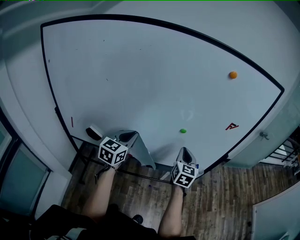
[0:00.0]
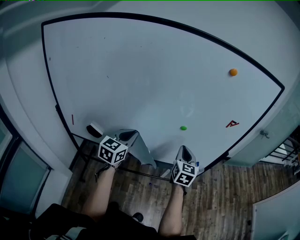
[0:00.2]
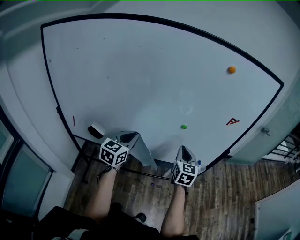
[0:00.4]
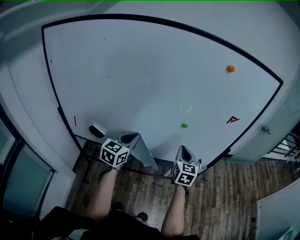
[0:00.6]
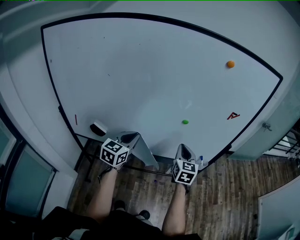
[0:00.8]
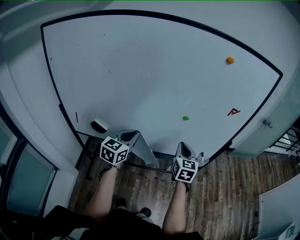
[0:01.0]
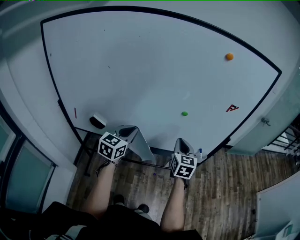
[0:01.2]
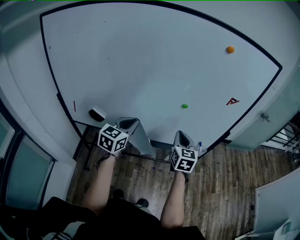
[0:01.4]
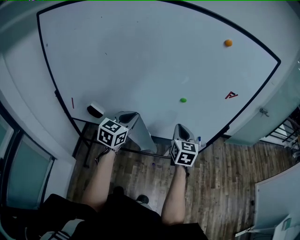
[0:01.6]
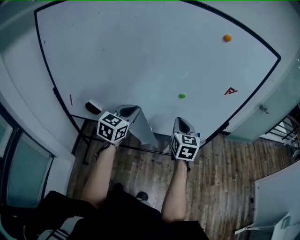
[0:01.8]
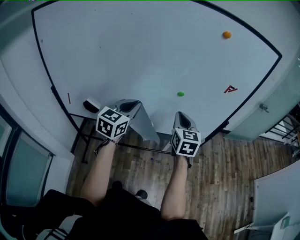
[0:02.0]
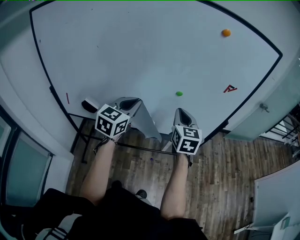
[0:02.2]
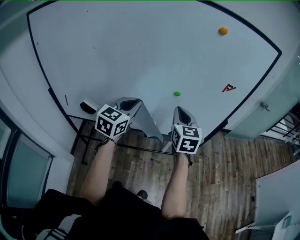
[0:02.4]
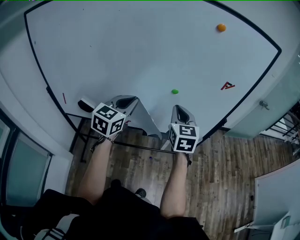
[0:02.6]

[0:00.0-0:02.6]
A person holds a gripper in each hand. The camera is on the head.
0:00.0 to 0:01.2: The grippers both shift backward by roughly 5 cm.
0:01.2 to 0:02.6: The left gripper travels upward and to the right by about 5 cm, while the right gripper travels upward by approximately 5 cm.

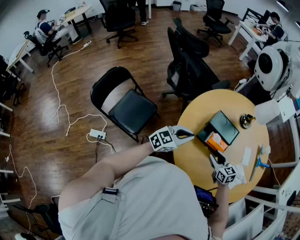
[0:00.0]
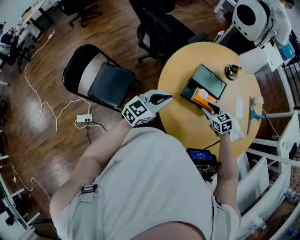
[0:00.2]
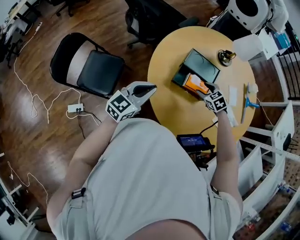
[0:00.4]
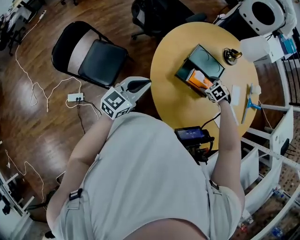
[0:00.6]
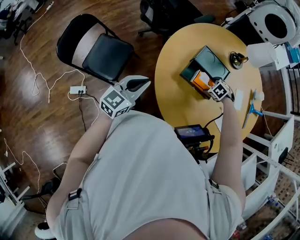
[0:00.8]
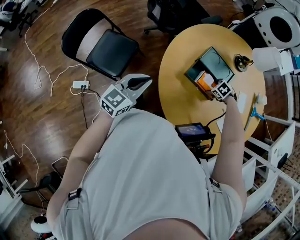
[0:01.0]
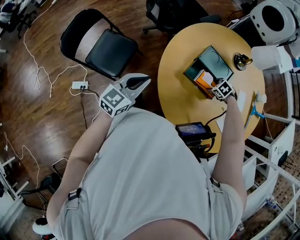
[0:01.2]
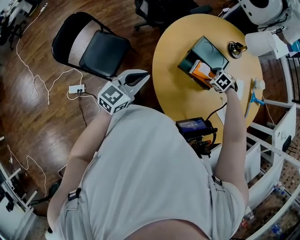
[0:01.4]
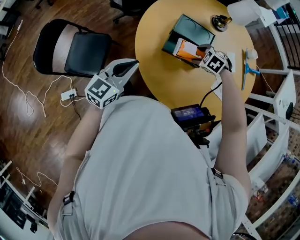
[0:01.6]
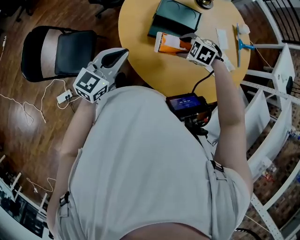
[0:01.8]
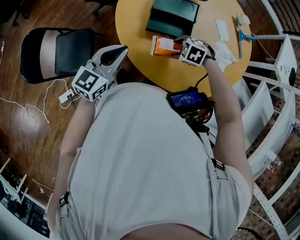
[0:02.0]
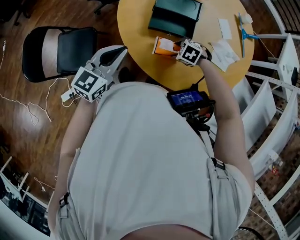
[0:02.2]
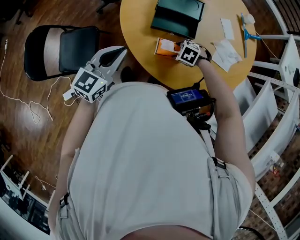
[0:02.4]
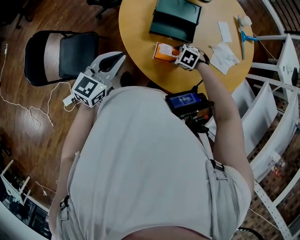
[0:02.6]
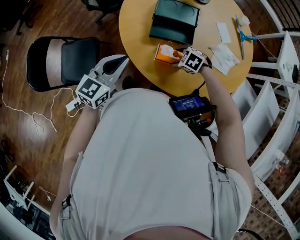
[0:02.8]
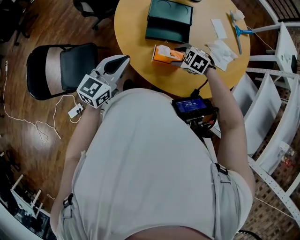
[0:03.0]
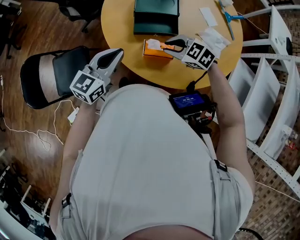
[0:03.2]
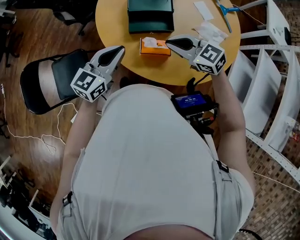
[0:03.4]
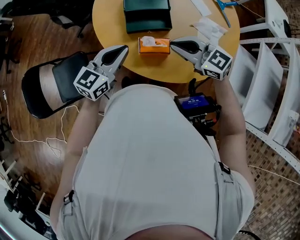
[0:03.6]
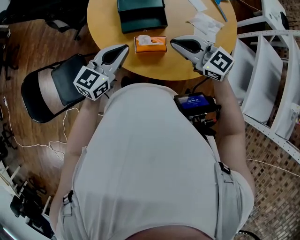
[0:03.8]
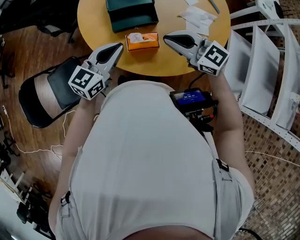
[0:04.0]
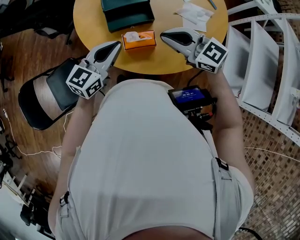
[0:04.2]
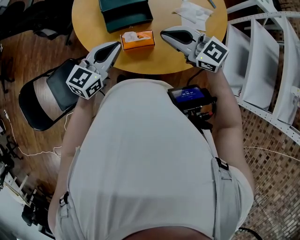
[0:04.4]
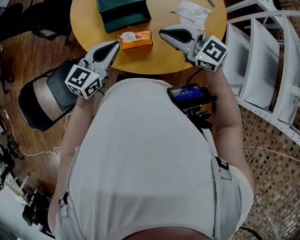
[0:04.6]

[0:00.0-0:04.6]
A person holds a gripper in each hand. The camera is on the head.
0:00.0 to 0:01.6: The right gripper travels downward and back again, some 15 cm each way, and points its fingers approximately 30 degrees further downward, while the left gripper ends up approximately 15 cm from where it was.
0:01.6 to 0:03.0: The left gripper ends up roughly 5 cm from where it was. The right gripper changes place by some 10 cm, and changes its angle by some 20 degrees.
0:03.0 to 0:04.6: The left gripper travels to the right by about 10 cm. The right gripper heads upward, covering approximately 20 cm, angles its fingers upward, by approximately 50 degrees, and closes.

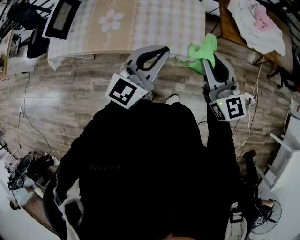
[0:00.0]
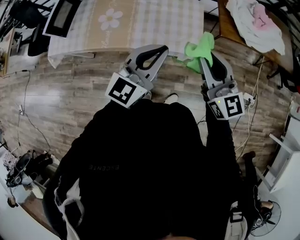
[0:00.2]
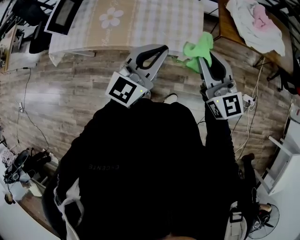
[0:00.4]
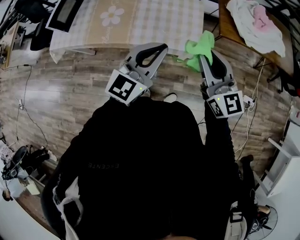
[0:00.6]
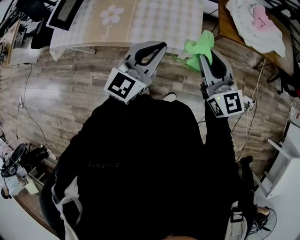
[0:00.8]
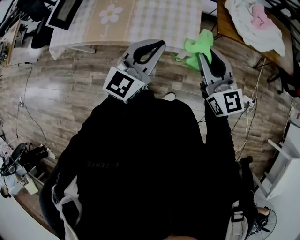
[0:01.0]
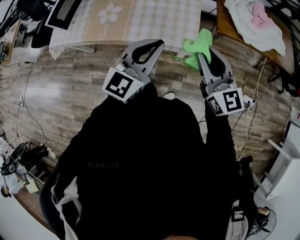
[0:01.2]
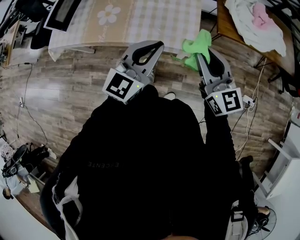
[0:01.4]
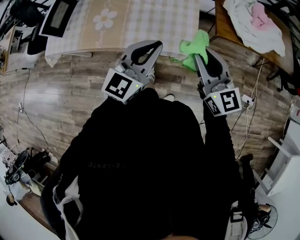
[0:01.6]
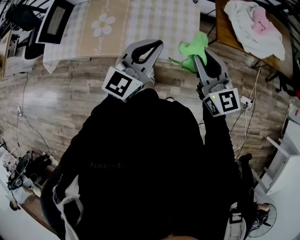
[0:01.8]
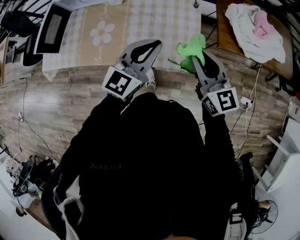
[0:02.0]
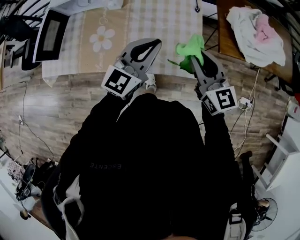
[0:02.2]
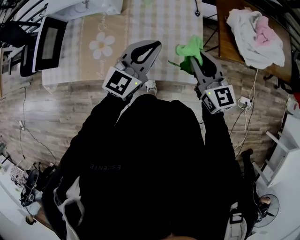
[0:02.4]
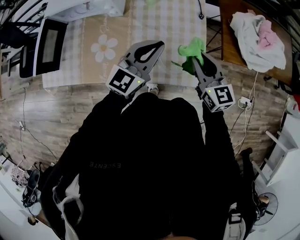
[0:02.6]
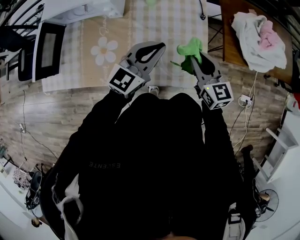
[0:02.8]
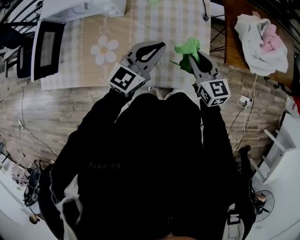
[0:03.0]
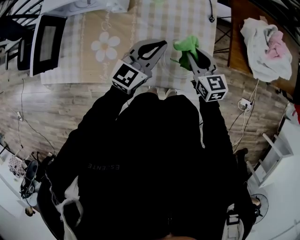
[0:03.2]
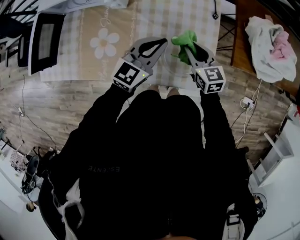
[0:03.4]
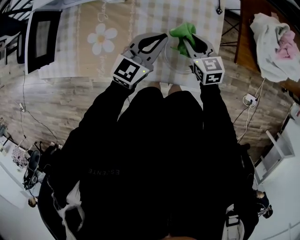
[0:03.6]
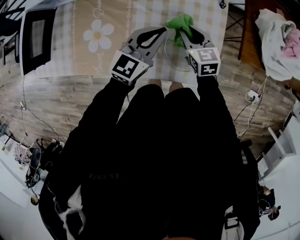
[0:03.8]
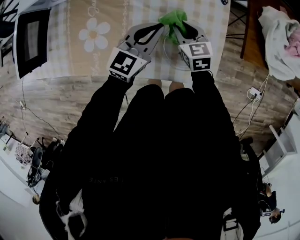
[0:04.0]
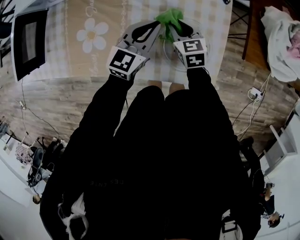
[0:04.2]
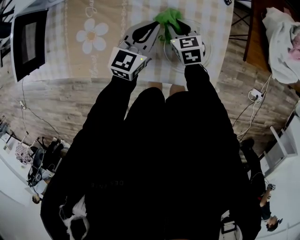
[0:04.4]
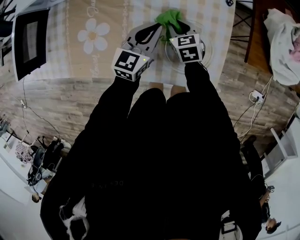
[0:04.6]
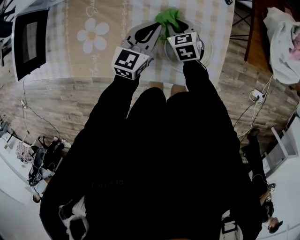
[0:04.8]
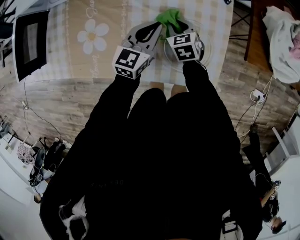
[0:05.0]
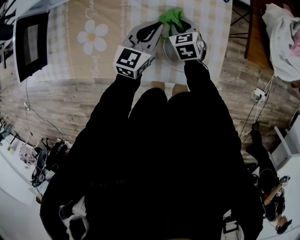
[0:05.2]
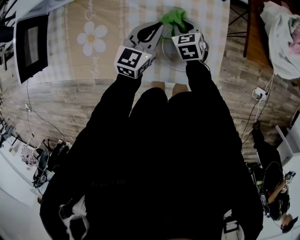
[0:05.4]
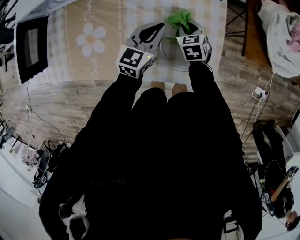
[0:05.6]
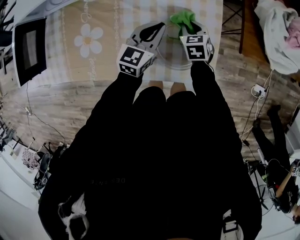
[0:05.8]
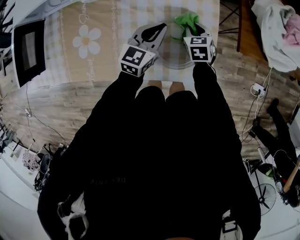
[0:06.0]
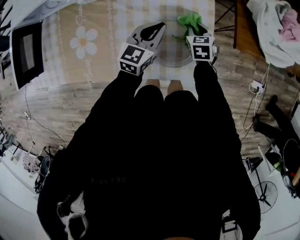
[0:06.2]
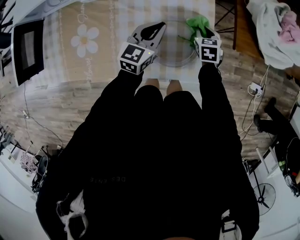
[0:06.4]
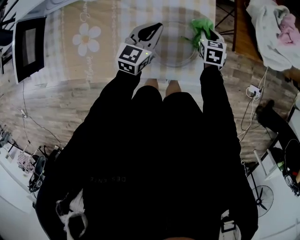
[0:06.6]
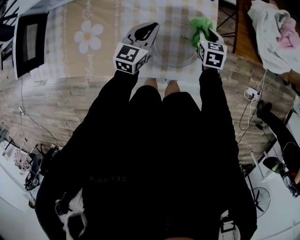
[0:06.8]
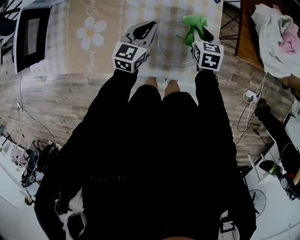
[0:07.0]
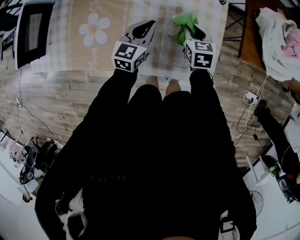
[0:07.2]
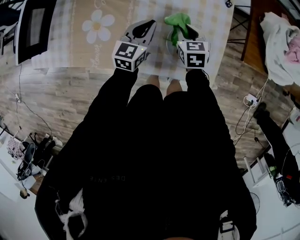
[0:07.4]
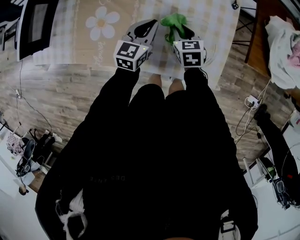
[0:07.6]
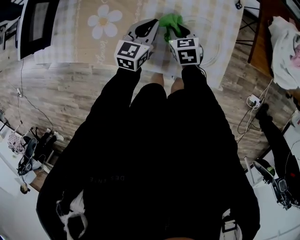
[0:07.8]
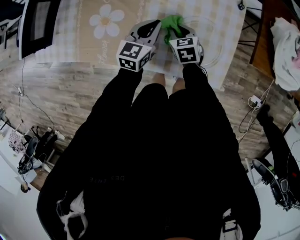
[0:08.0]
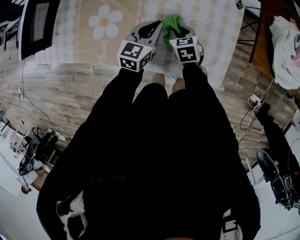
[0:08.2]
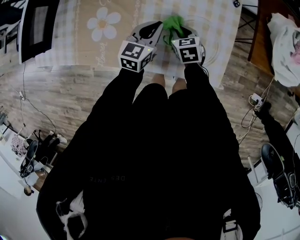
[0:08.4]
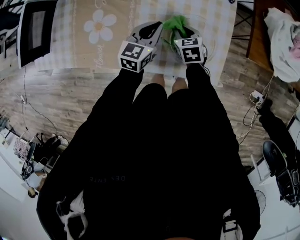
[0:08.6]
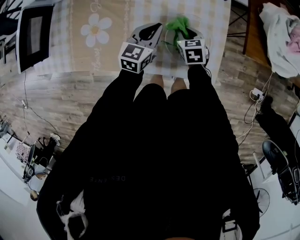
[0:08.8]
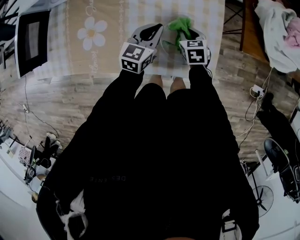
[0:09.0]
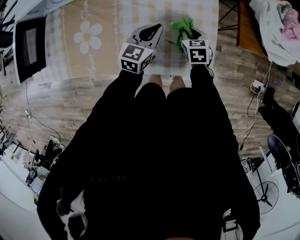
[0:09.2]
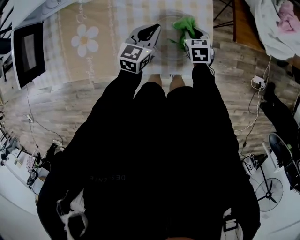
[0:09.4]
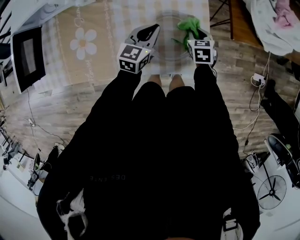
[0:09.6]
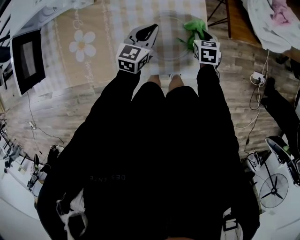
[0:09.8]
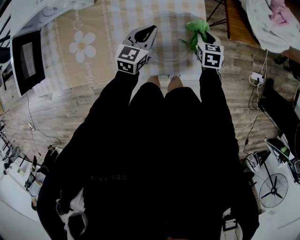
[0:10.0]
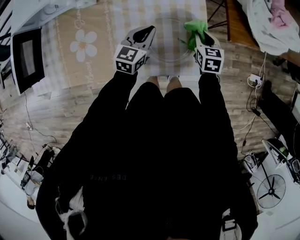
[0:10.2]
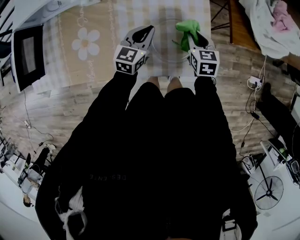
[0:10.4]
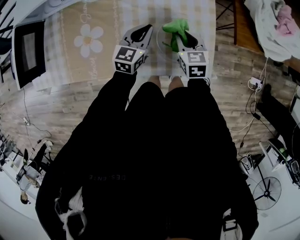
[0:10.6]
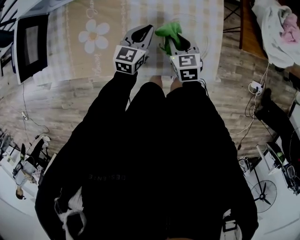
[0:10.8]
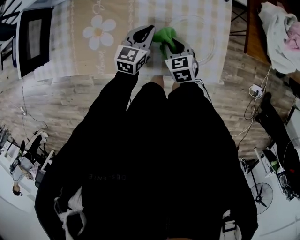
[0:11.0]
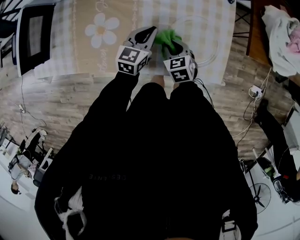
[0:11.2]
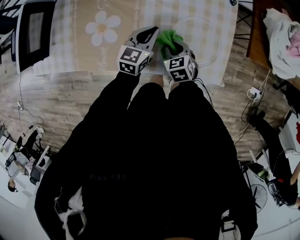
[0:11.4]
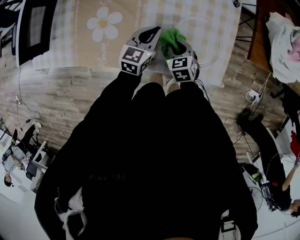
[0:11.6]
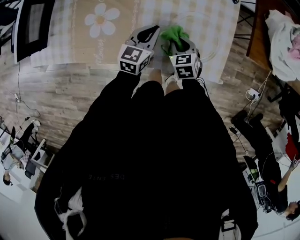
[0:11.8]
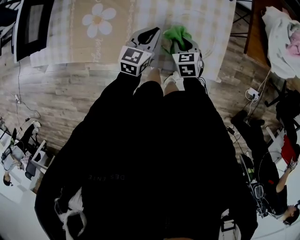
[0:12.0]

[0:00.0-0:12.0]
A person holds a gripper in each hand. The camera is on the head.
0:00.0 to 0:01.6: The left gripper shifts by roughly 5 cm, while the right gripper ends up about 5 cm from where it was.
0:01.6 to 0:03.0: The left gripper goes approximately 30 cm forward and to the left. The right gripper moves forward, downward and to the left, about 30 cm, and changes its angle by about 20 degrees.
0:03.0 to 0:04.4: The grippers both shift downward by about 20 cm. The right gripper swivels approximately 20 degrees.
0:04.4 to 0:06.0: The left gripper moves to the right, some 5 cm. The right gripper shifts about 15 cm to the right.
0:06.0 to 0:07.6: Both grippers travel together to the left, approximately 10 cm.
0:07.6 to 0:09.0: The grippers both shift to the right by about 10 cm.
0:09.0 to 0:10.4: The right gripper travels to the right and upward by approximately 10 cm.
0:10.4 to 0:12.0: The left gripper goes about 10 cm to the left and backward. The right gripper heads to the left, downward and backward, covering some 15 cm.

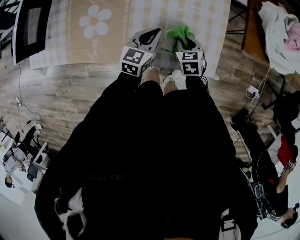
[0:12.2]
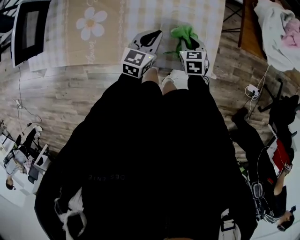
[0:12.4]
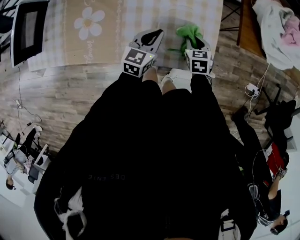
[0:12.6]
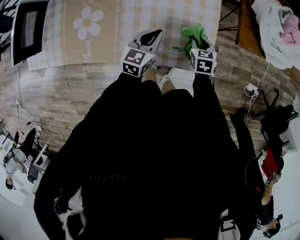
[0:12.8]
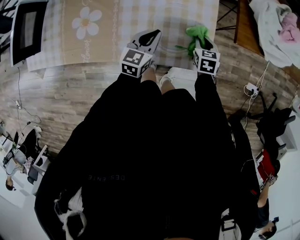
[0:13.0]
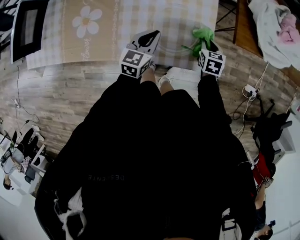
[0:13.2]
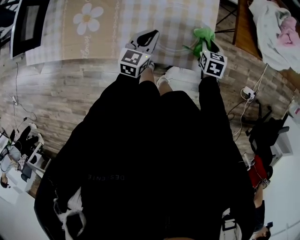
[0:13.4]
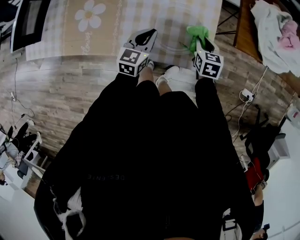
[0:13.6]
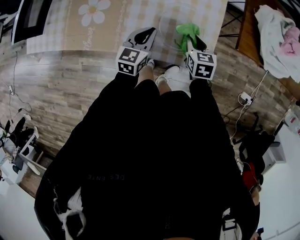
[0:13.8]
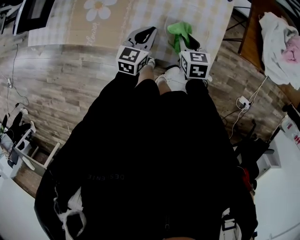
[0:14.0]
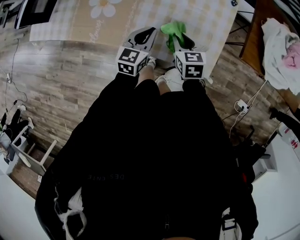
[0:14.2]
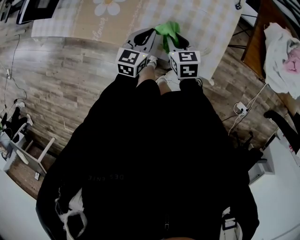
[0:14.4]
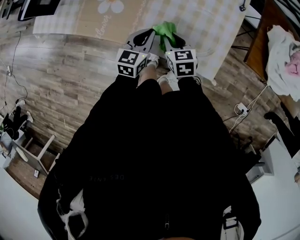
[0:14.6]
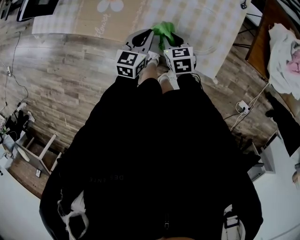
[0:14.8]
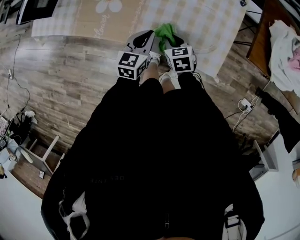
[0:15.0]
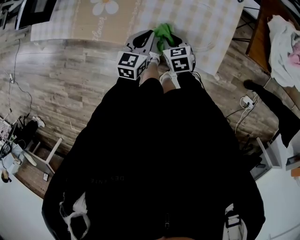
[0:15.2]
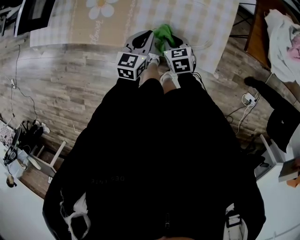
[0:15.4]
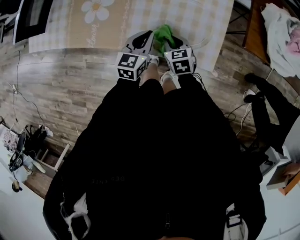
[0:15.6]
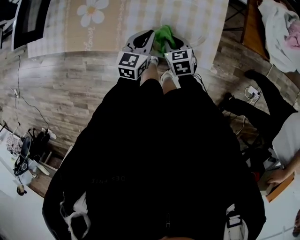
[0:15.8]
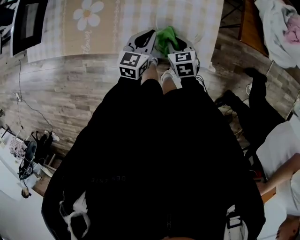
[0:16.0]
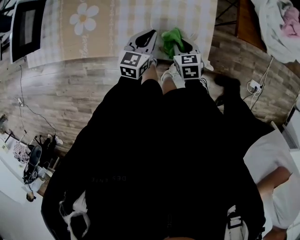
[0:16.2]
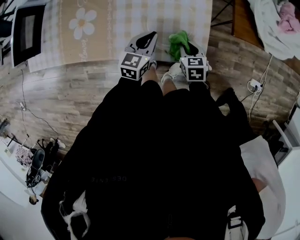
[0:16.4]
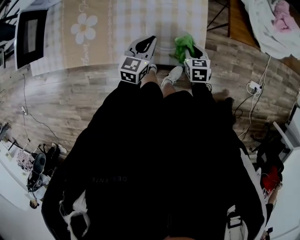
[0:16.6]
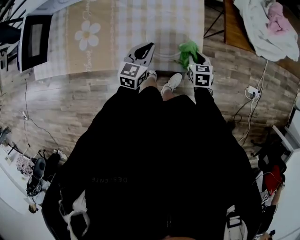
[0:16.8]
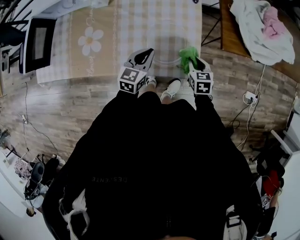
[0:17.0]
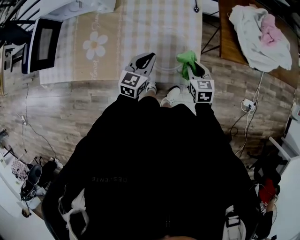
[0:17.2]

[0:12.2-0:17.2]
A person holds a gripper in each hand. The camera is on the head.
0:12.2 to 0:13.8: The right gripper goes some 10 cm to the right and upward.
0:13.8 to 0:15.6: The right gripper goes about 15 cm to the left.
0:15.6 to 0:17.2: The right gripper is displaced to the right and upward by roughly 20 cm. Meanwhile the left gripper travels to the right and upward by some 10 cm.
